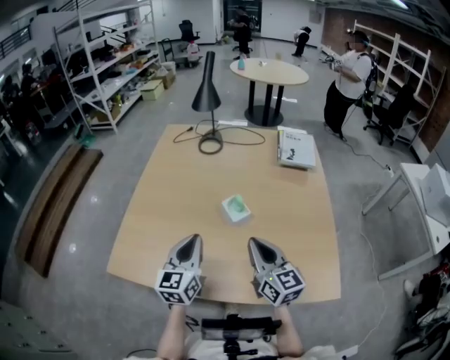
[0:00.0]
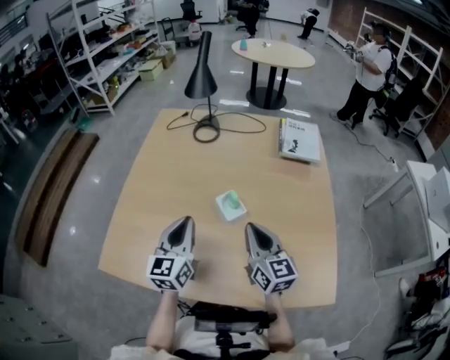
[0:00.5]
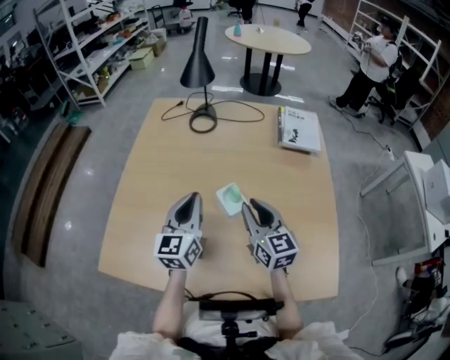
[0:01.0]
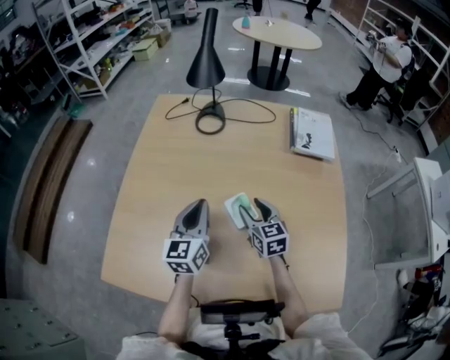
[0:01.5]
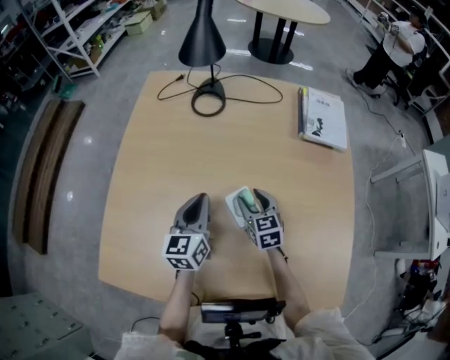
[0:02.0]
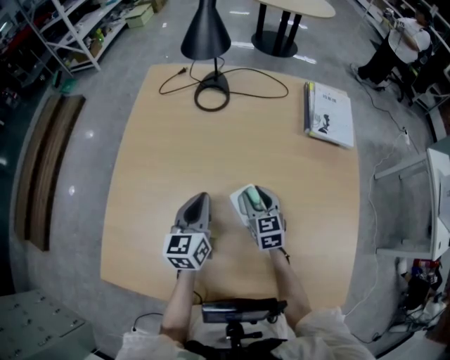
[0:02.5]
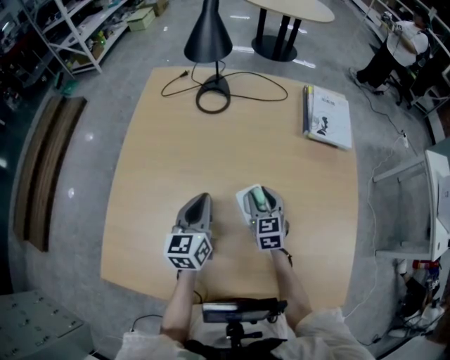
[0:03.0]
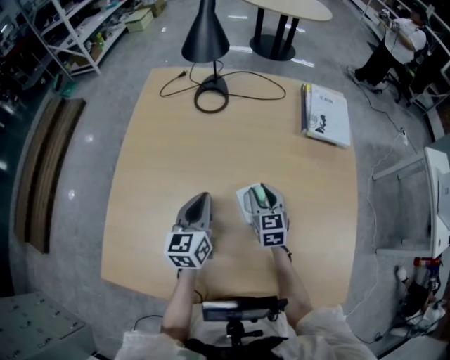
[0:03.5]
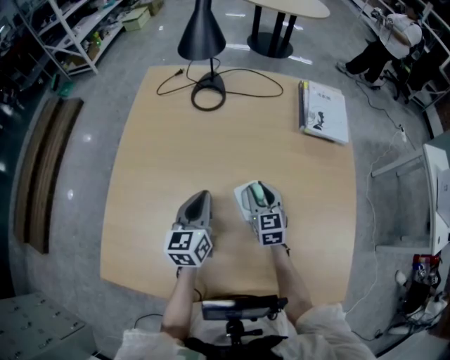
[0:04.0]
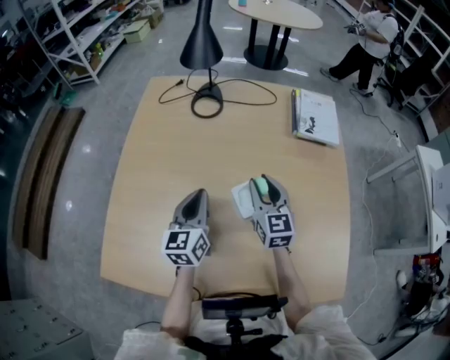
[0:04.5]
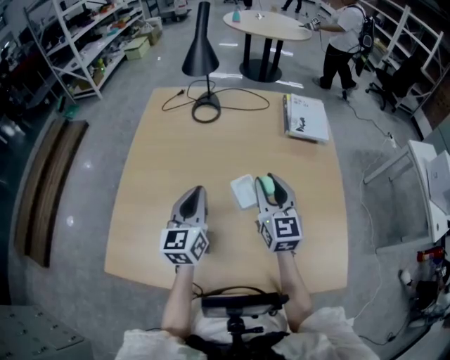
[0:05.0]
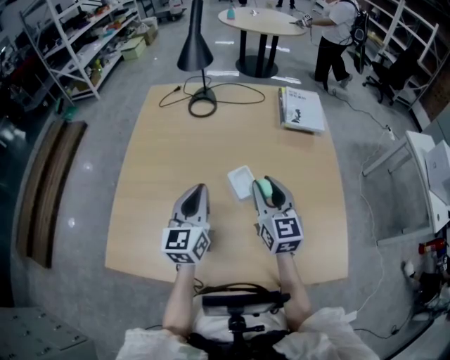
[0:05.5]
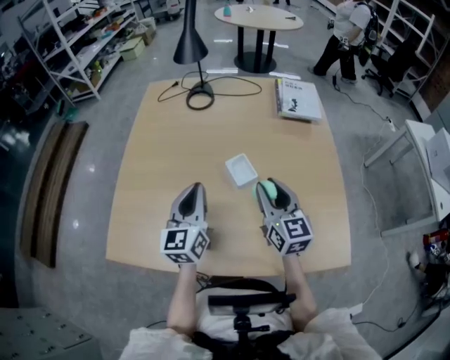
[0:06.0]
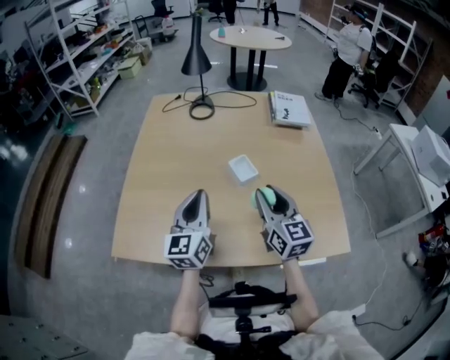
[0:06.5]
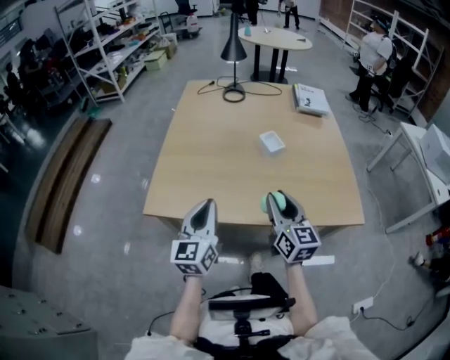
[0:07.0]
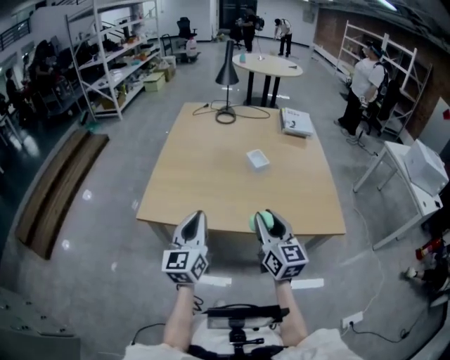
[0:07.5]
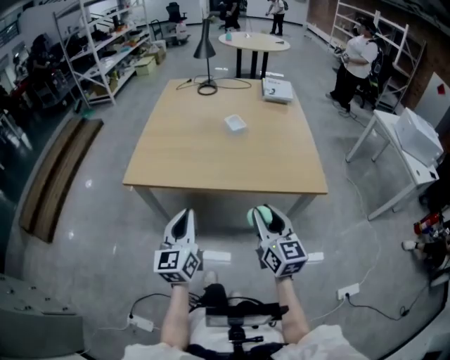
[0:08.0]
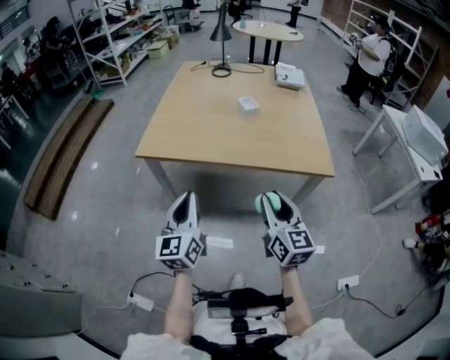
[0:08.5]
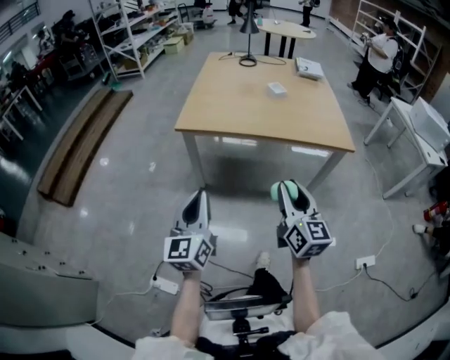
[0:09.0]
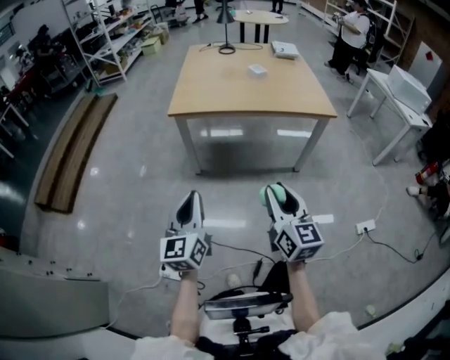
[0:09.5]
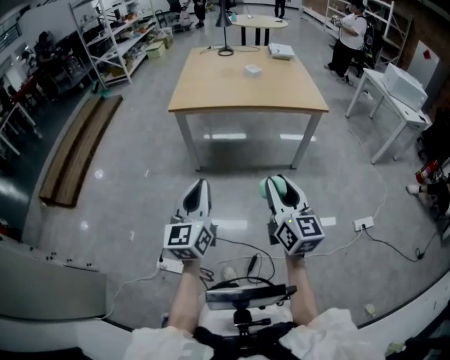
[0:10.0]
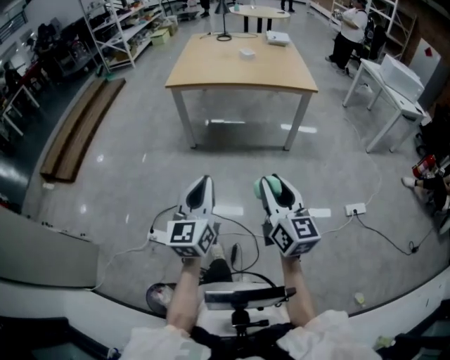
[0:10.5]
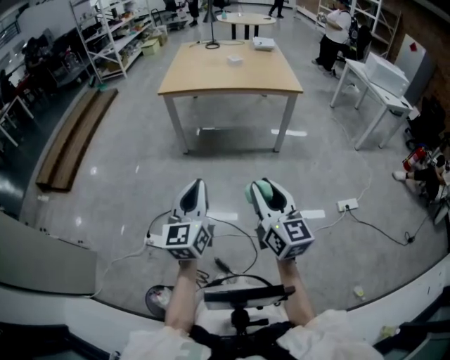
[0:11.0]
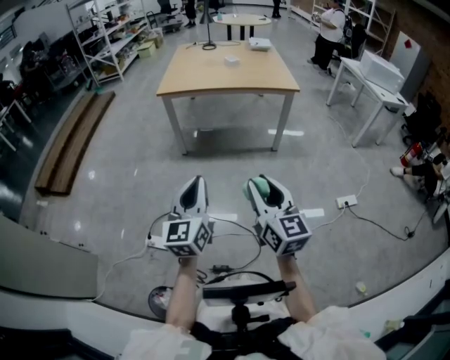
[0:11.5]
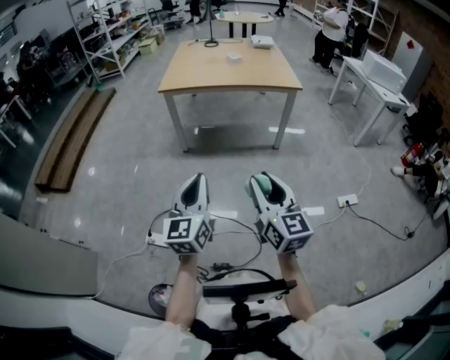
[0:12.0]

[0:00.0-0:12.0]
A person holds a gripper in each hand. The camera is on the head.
0:00.0 to 0:02.0: The two grippers go about 30 cm forward and downward. The right gripper tips its fingers downward by some 30 degrees, and opens up.
0:02.0 to 0:04.0: The grippers move only a little.
0:04.0 to 0:06.0: Both grippers move backward and upward, approximately 20 cm. The right gripper rotates about 20 degrees.
0:06.0 to 0:08.0: The pair of grippers is taken backward, approximately 50 cm.
0:08.0 to 0:10.0: The two grippers travel together, backward, about 50 cm.
0:10.0 to 0:12.0: Both grippers travel together backward, some 20 cm.

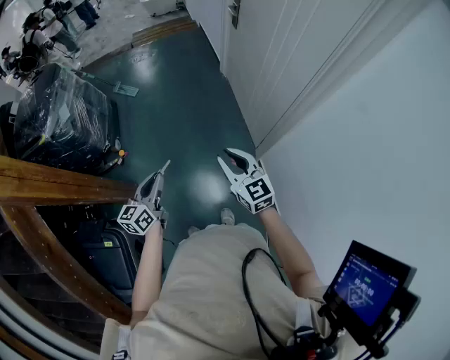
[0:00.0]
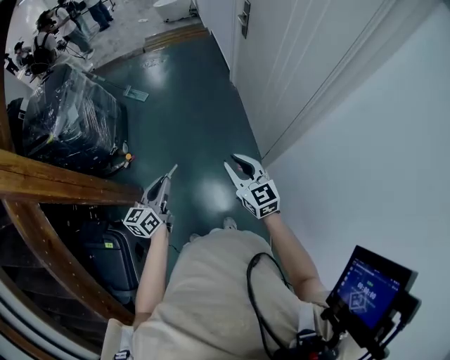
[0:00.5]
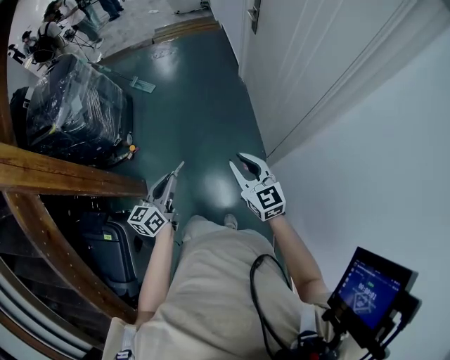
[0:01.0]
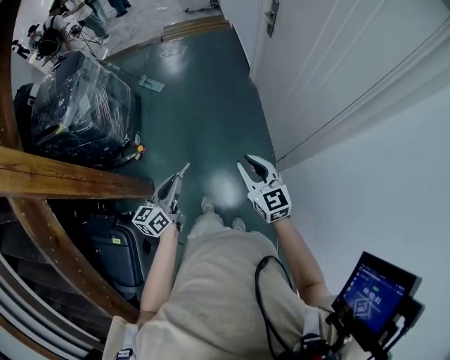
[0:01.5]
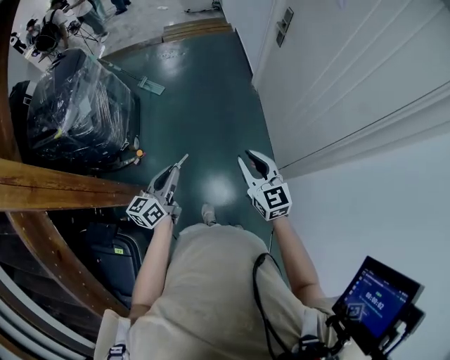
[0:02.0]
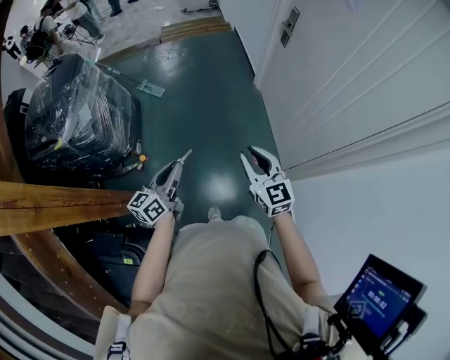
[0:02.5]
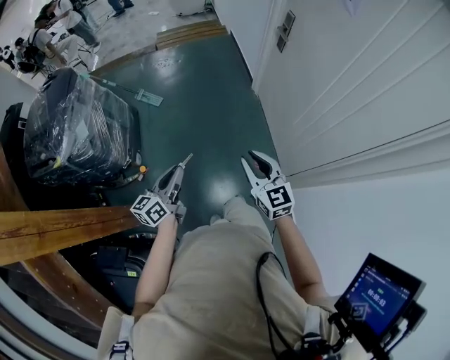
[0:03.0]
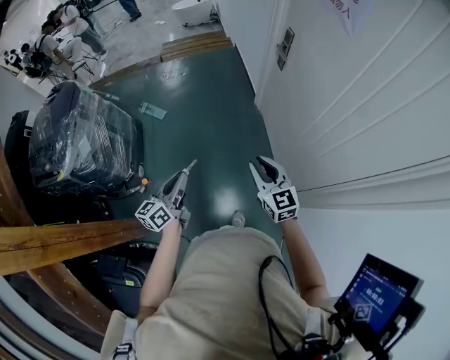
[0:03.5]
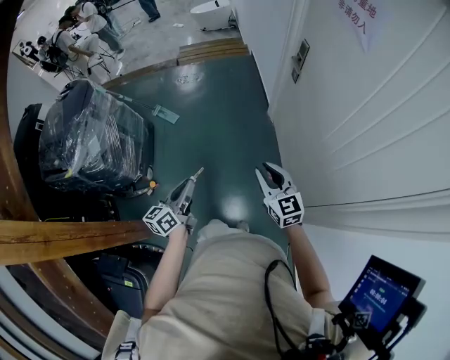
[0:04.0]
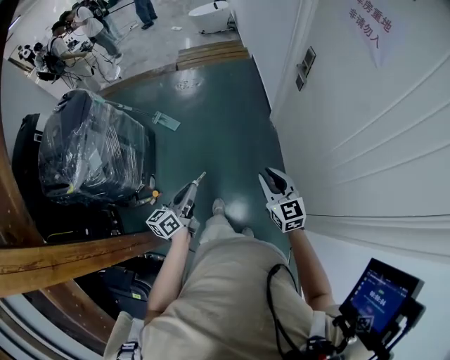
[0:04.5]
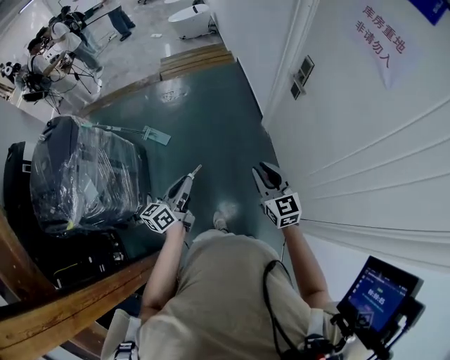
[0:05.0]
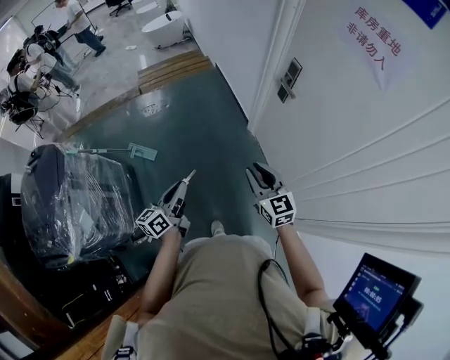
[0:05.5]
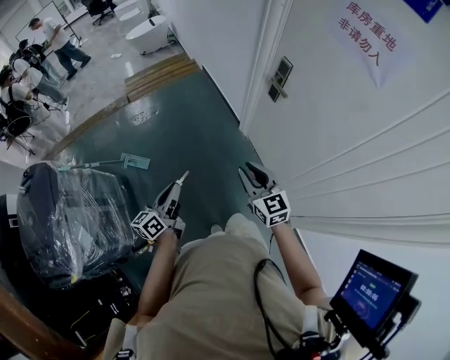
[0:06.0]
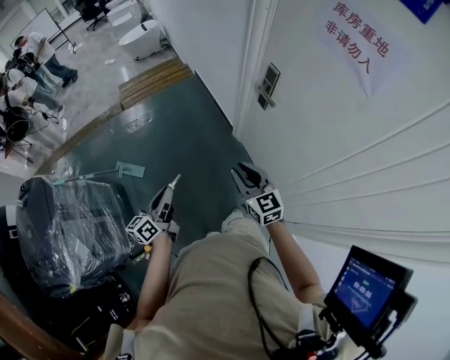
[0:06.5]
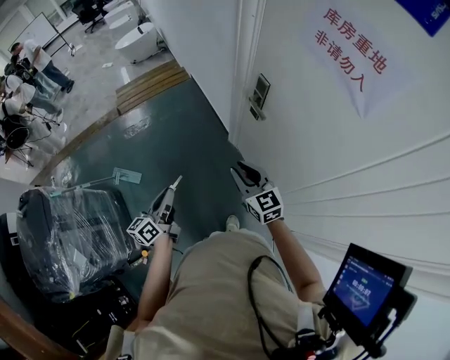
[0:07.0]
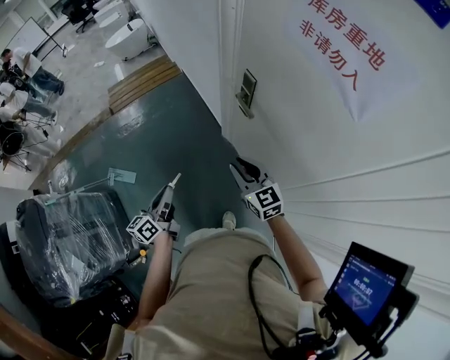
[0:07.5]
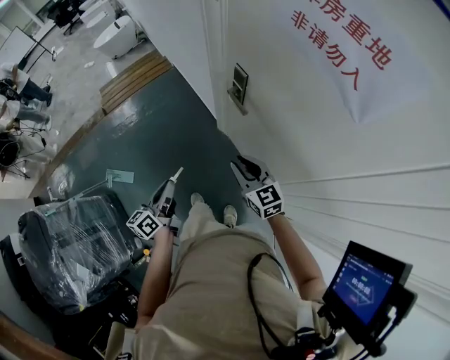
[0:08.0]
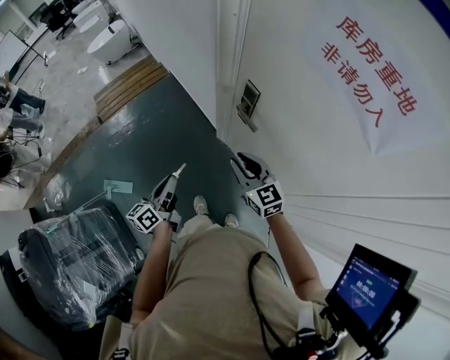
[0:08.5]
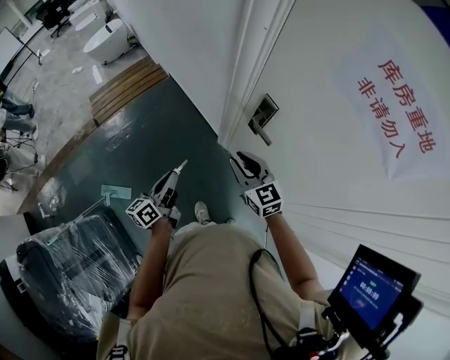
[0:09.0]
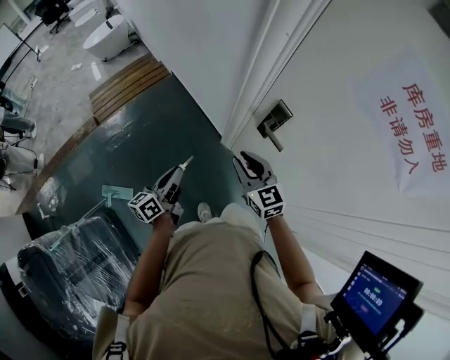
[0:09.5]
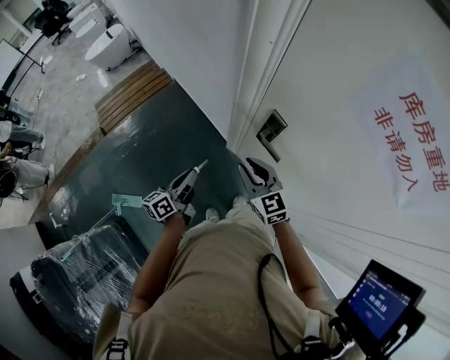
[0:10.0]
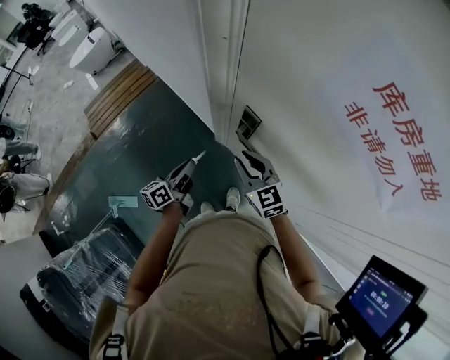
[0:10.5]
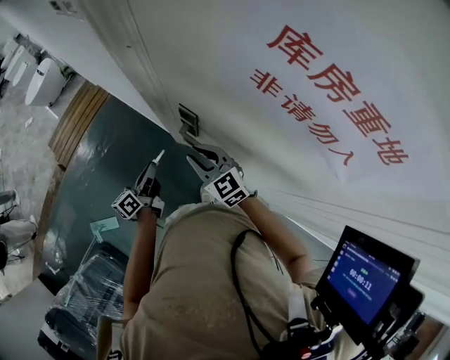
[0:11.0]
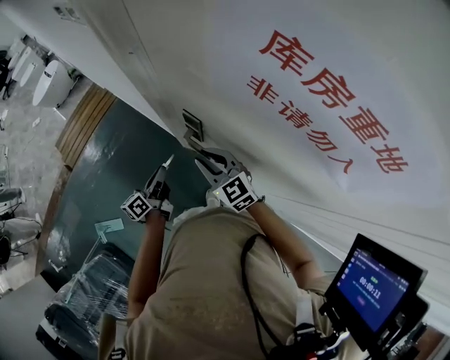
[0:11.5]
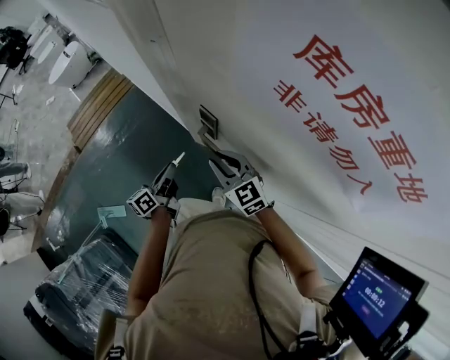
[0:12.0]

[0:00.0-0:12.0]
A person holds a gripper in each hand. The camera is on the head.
0:00.0 to 0:02.0: Both grippers travel together forward, some 15 cm.
0:02.0 to 0:04.0: Both grippers travel together forward, about 20 cm.
0:04.0 to 0:06.0: The grippers both shift forward and to the left by some 30 cm.
0:06.0 to 0:08.0: The right gripper travels to the right and forward by approximately 25 cm. The left gripper moves forward and to the right, roughly 25 cm.
0:08.0 to 0:10.0: The right gripper heads forward and to the left, covering some 20 cm; the left gripper shifts roughly 25 cm forward.
0:10.0 to 0:12.0: The right gripper shifts roughly 10 cm to the right, while the left gripper travels to the right and forward by about 15 cm.

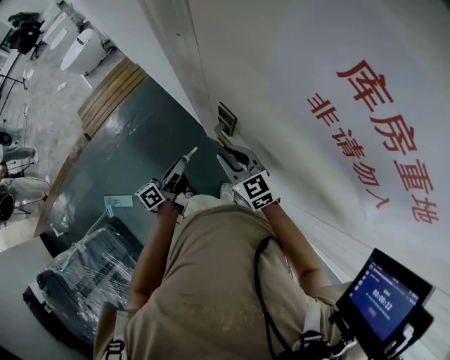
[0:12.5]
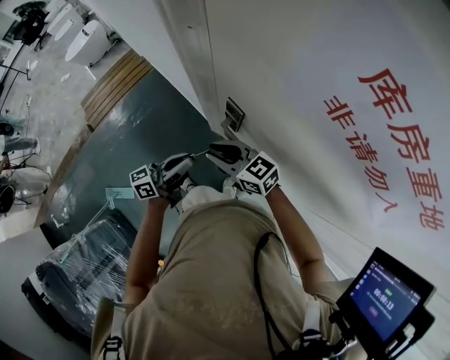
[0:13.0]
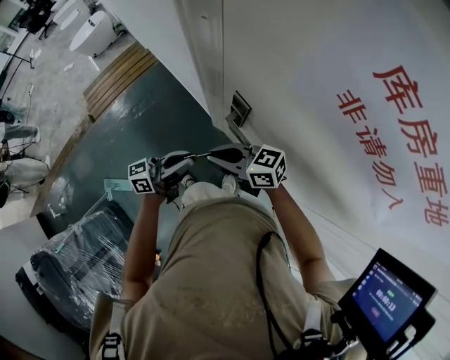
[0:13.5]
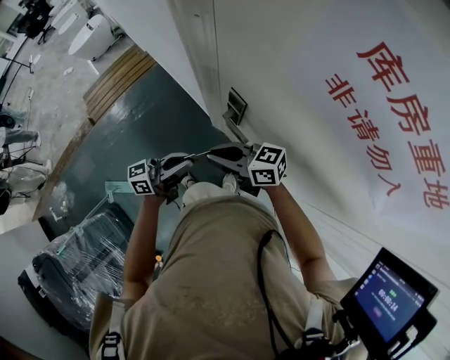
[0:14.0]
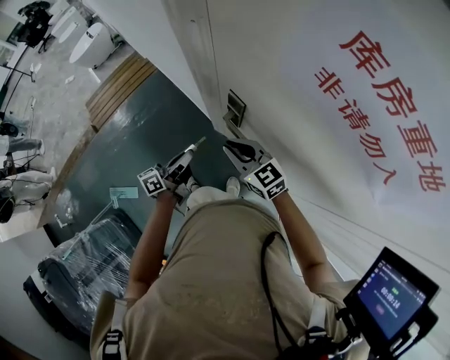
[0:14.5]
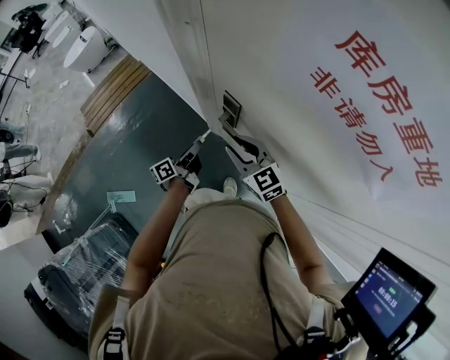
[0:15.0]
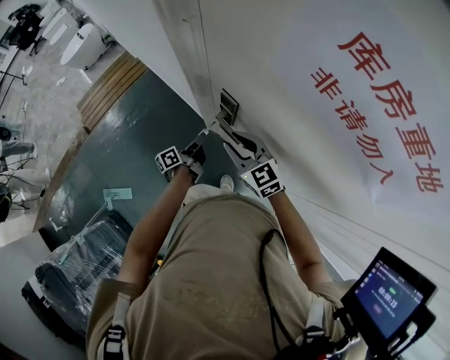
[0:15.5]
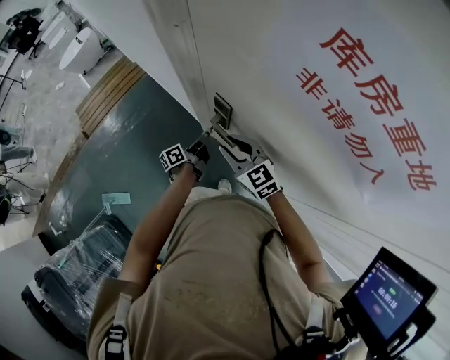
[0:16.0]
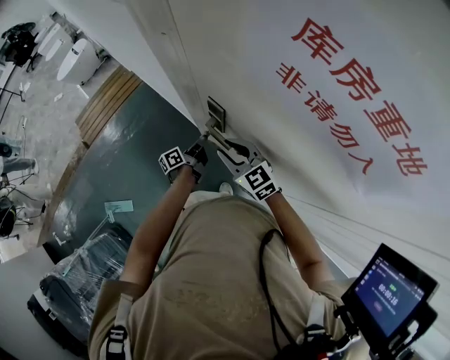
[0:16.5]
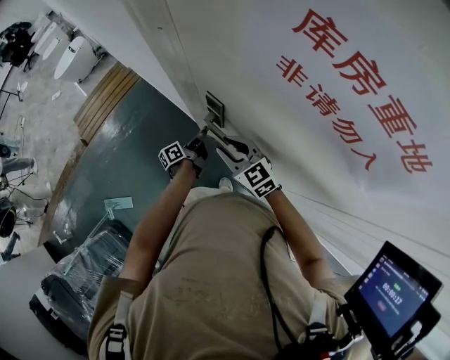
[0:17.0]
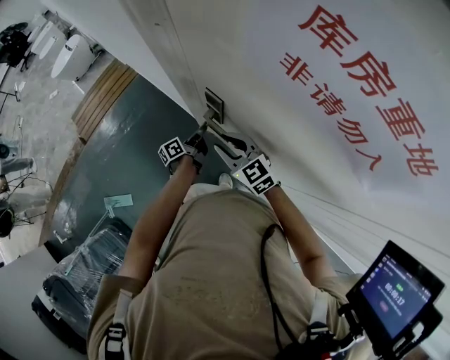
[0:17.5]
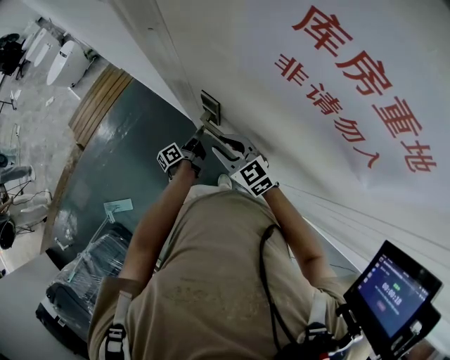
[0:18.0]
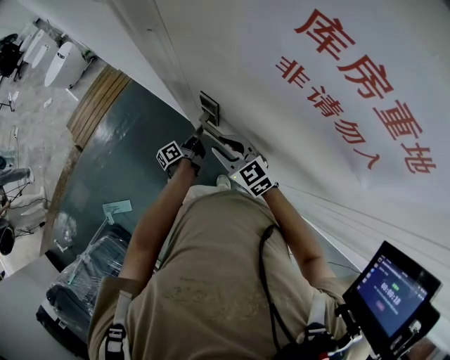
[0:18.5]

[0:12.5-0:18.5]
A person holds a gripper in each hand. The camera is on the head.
0:12.5 to 0:14.5: The left gripper goes upward and returns, about 10 cm each way.
0:14.5 to 0:16.5: The left gripper travels downward, to the right and forward by approximately 20 cm.
0:16.5 to 0:18.5: There are only small adjustments of the grippers.
